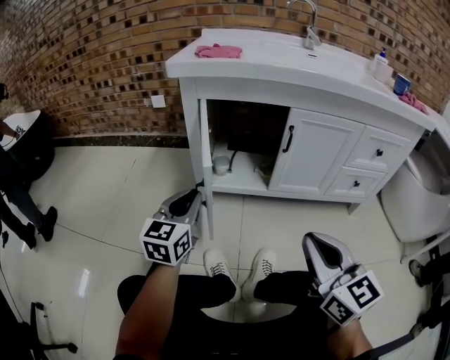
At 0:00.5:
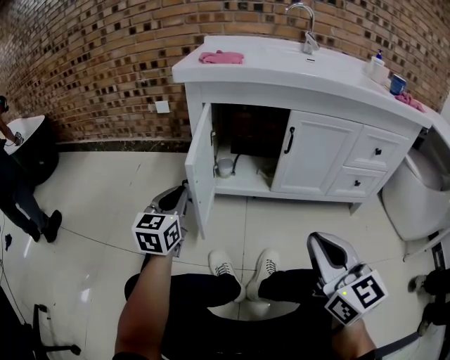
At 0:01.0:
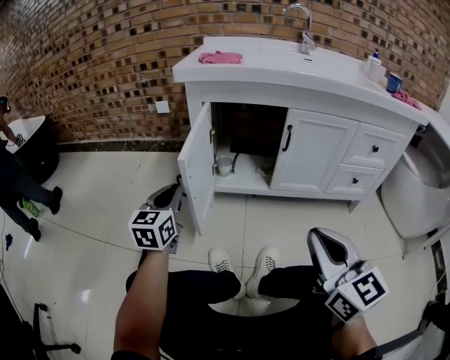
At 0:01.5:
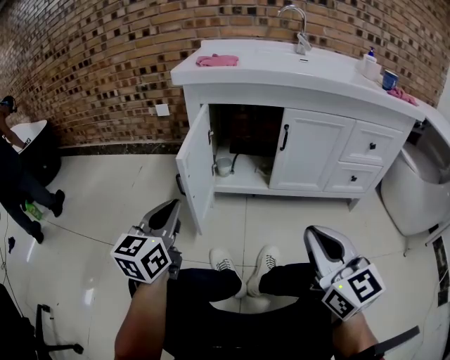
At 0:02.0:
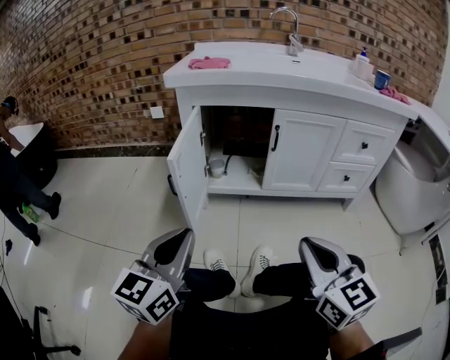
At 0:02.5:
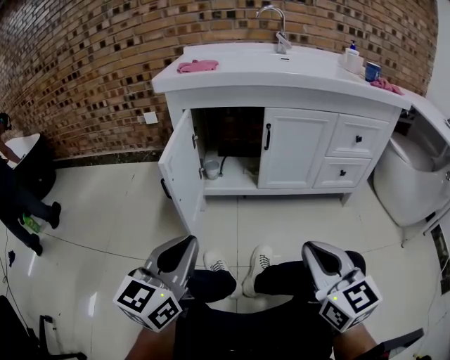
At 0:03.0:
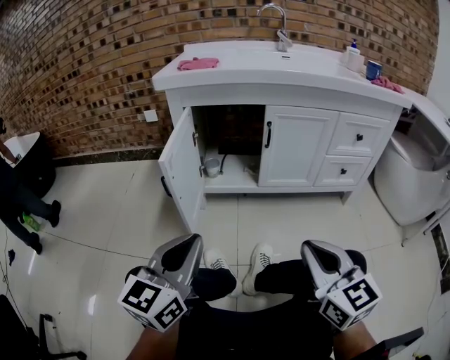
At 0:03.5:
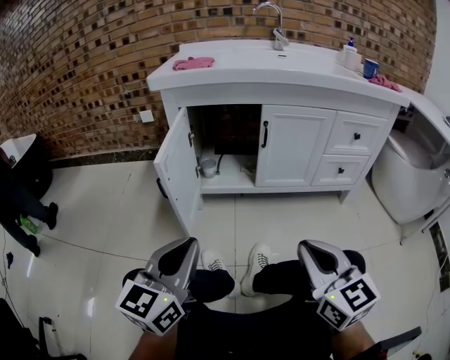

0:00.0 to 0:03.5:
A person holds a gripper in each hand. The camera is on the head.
0:00.0 to 0:02.0: The left gripper shifts about 20 cm backward. Meanwhile the right gripper goes about 5 cm backward.
0:02.0 to 0:03.5: The grippers stay close to where they were, moving slightly.

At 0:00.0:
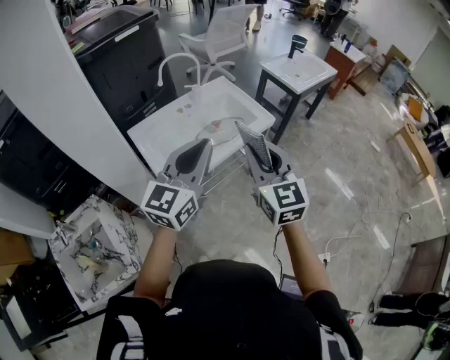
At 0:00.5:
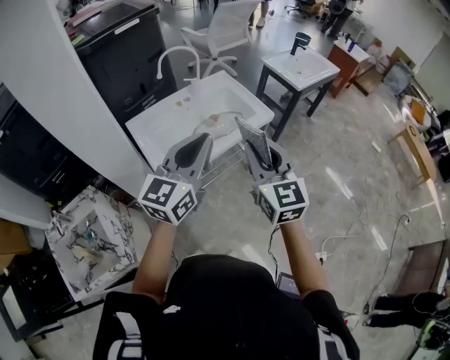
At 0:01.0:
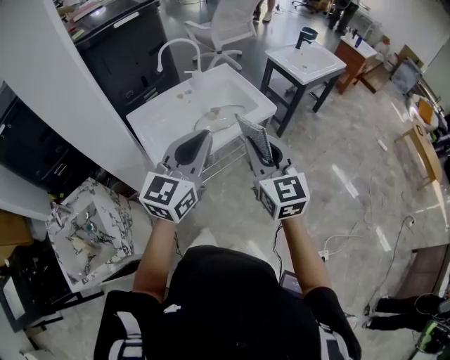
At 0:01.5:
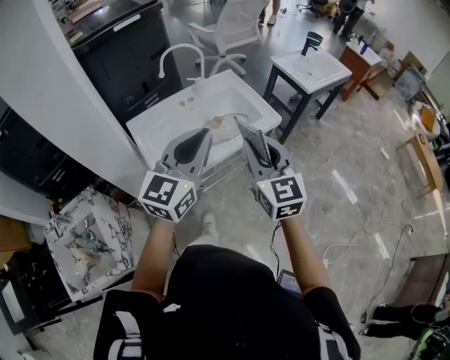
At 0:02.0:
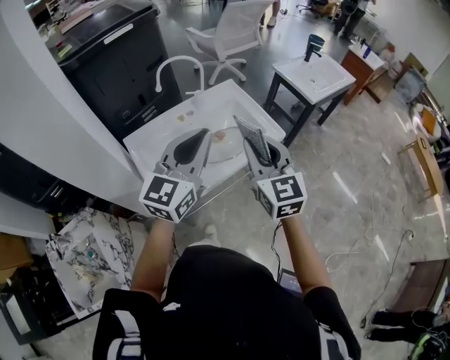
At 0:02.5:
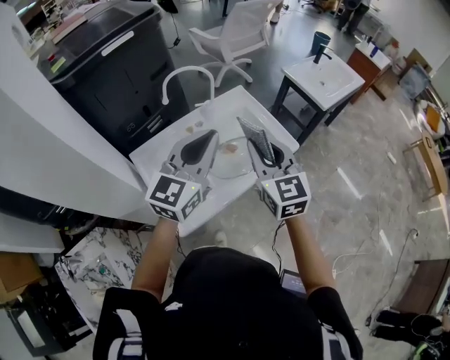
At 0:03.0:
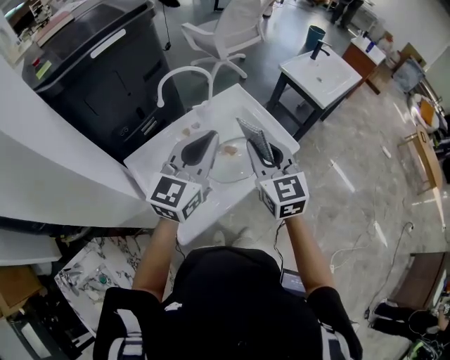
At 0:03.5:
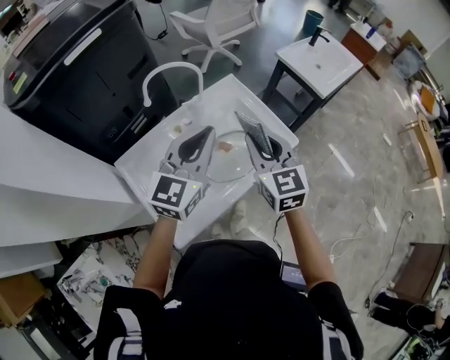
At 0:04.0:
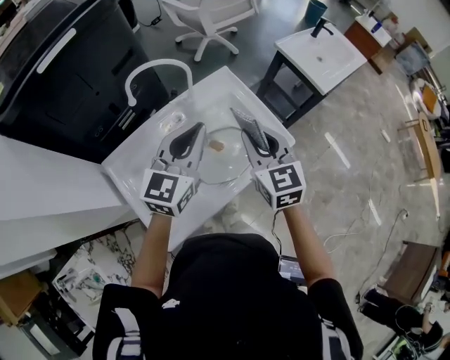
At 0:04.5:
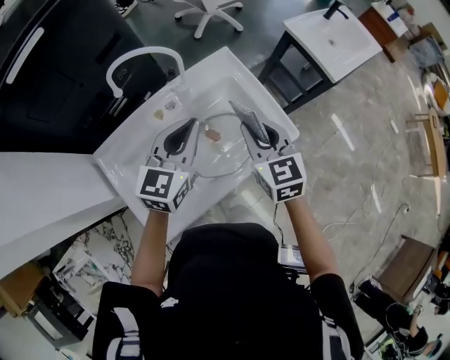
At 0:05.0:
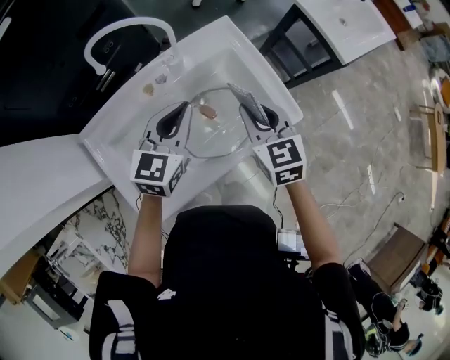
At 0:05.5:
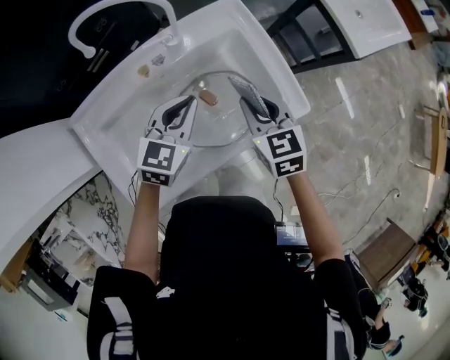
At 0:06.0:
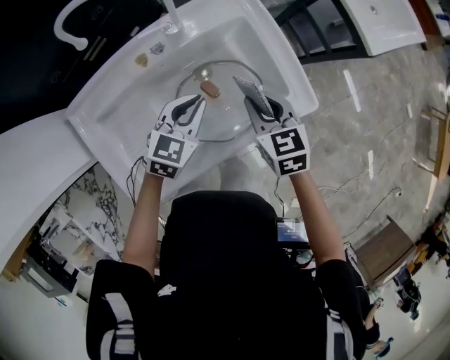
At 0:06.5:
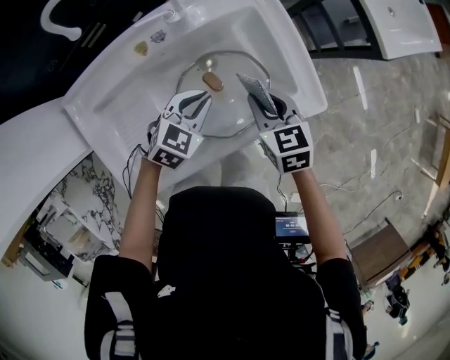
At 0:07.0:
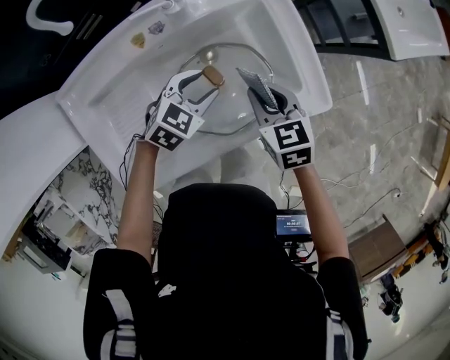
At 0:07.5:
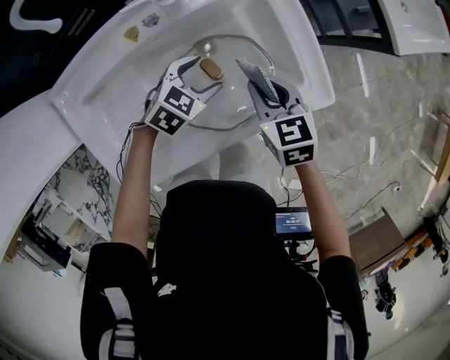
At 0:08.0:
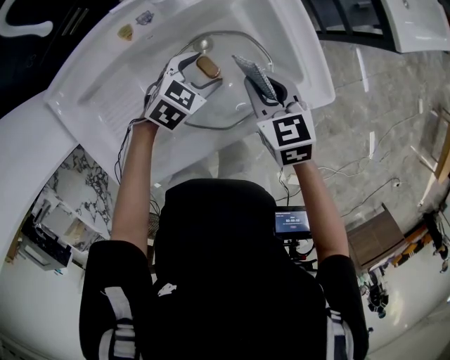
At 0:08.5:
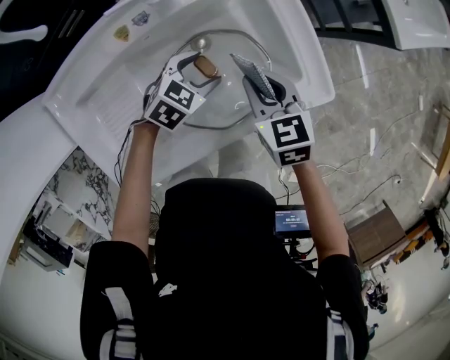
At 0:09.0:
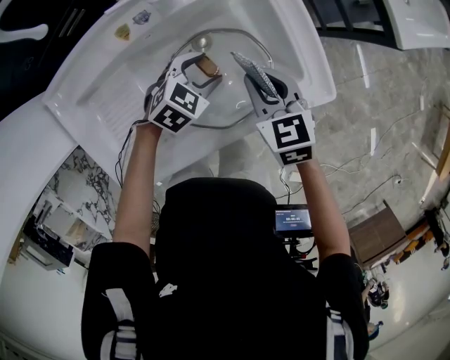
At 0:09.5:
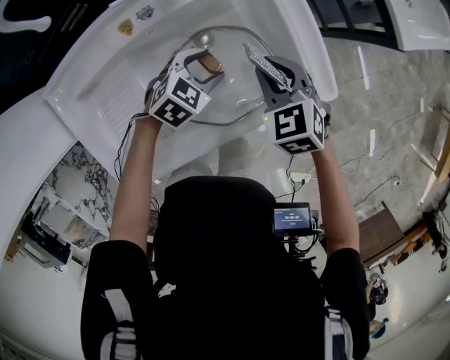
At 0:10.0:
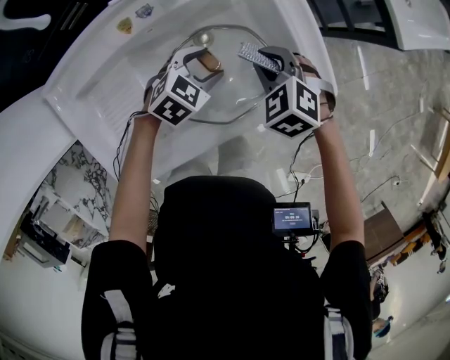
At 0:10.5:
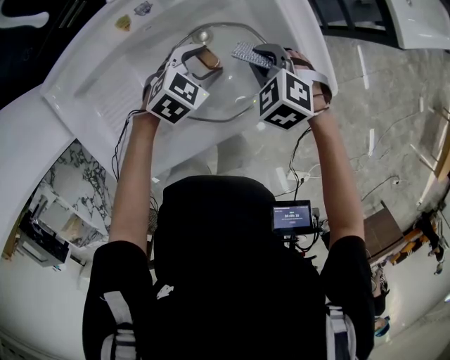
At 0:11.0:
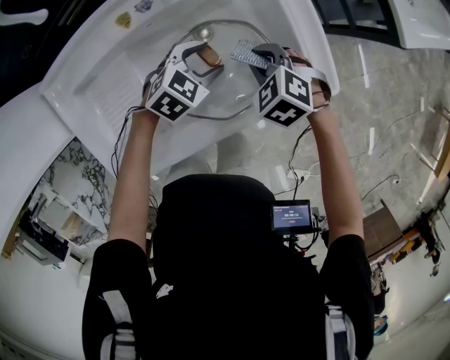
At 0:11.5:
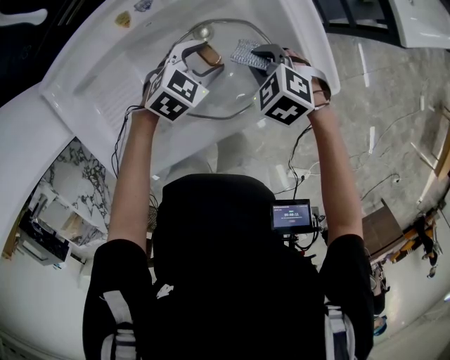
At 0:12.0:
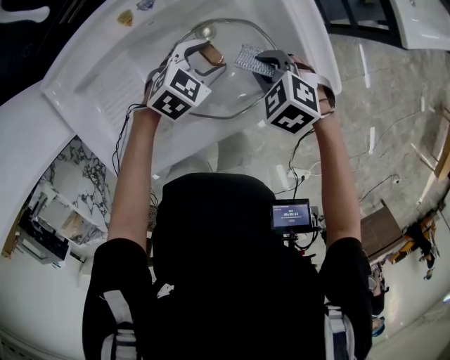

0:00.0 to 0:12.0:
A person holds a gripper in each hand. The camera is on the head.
0:00.0 to 0:02.0: The grippers both shift forward by roughly 15 cm.
0:02.0 to 0:04.0: The two grippers go about 25 cm forward and downward.
0:04.0 to 0:06.0: Both grippers travel together downward, roughly 25 cm. The right gripper swivels approximately 30 degrees, while the left gripper tips its fingers downward by about 30 degrees.
0:06.0 to 0:08.0: The right gripper moves downward, some 5 cm; the left gripper goes roughly 10 cm downward, changes its angle by roughly 20 degrees, and opens its fingers.
0:08.0 to 0:10.0: The right gripper changes its angle by roughly 40 degrees.
0:10.0 to 0:12.0: The grippers stay close to where they were, moving slightly.

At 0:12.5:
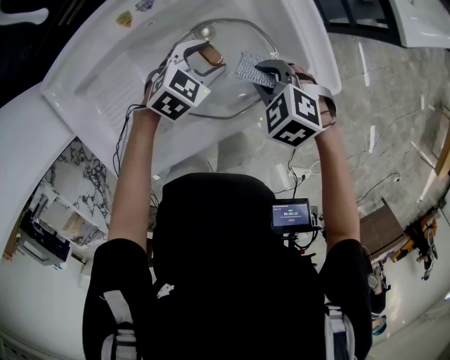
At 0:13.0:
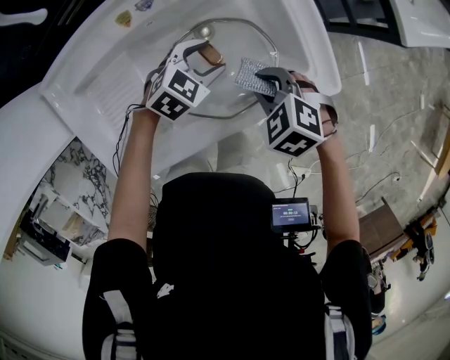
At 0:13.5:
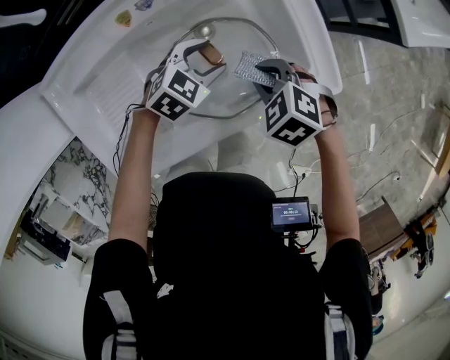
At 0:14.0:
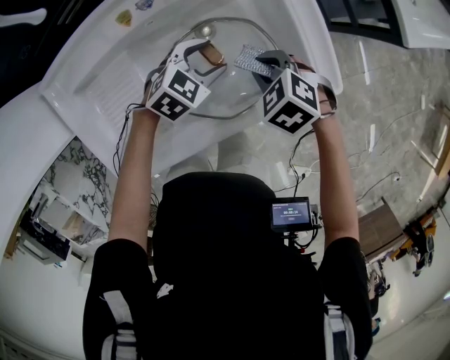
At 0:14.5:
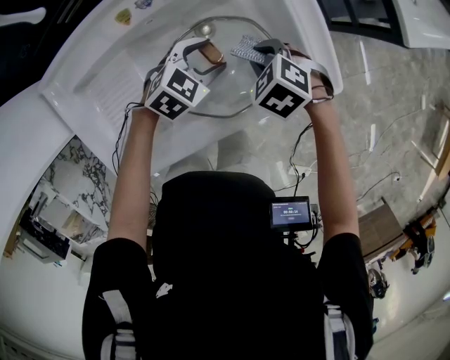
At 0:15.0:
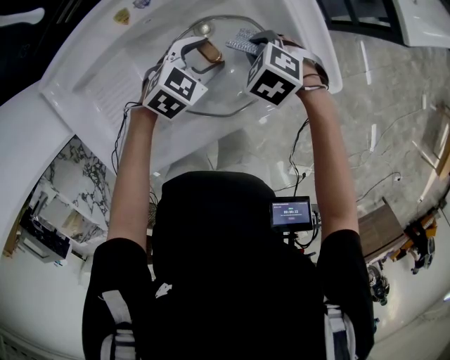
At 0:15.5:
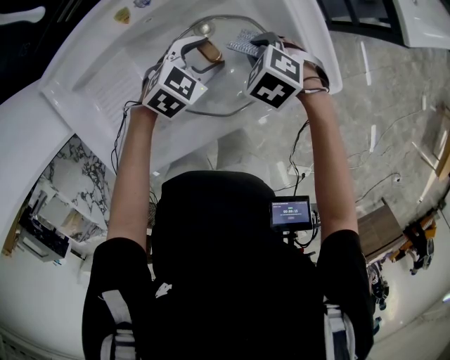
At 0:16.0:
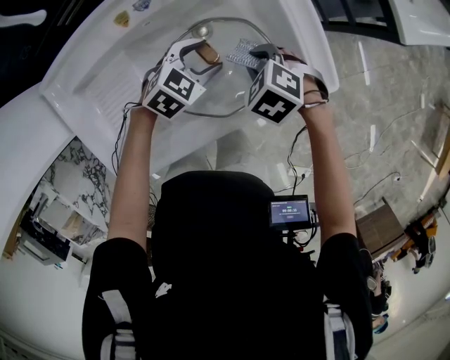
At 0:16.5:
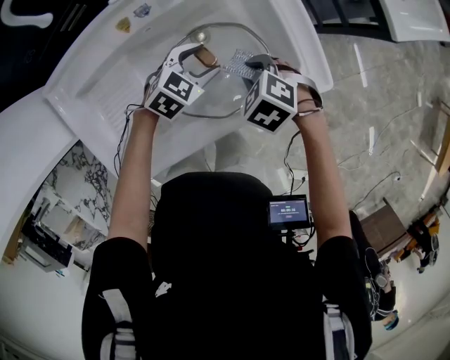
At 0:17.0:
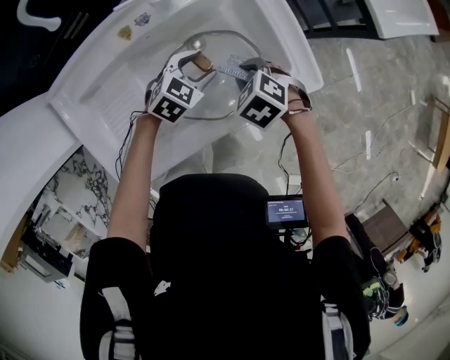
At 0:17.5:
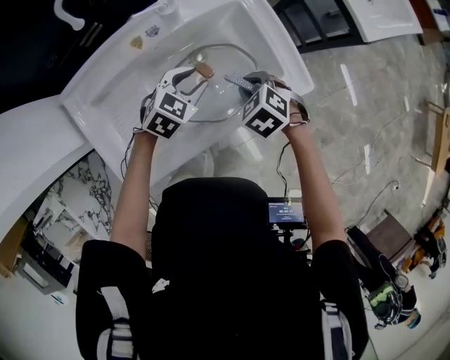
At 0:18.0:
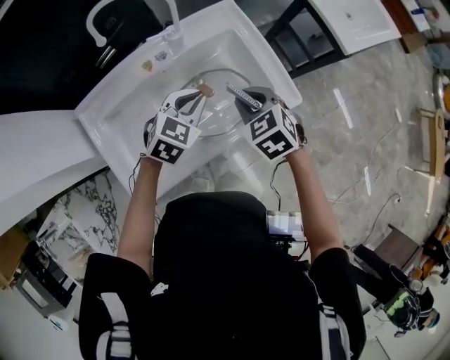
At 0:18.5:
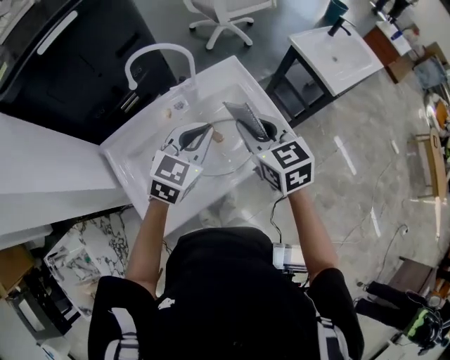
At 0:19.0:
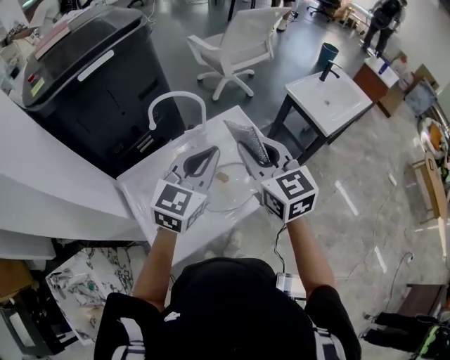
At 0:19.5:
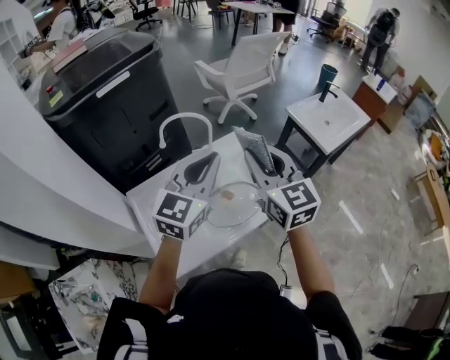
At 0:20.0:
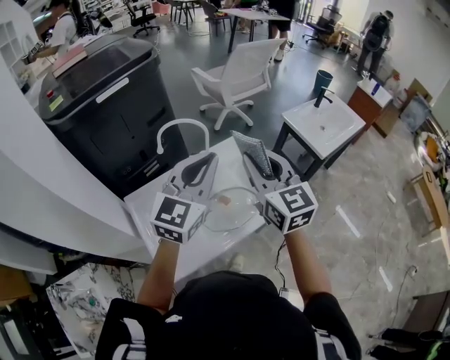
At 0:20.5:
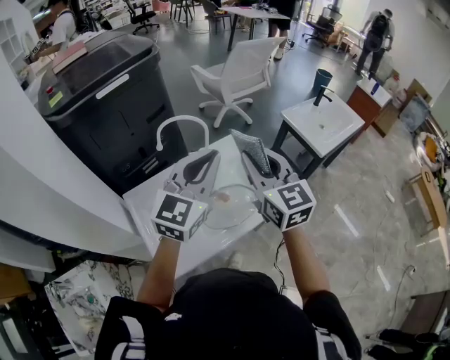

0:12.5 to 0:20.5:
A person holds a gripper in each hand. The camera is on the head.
0:12.5 to 0:14.5: The grippers stay close to where they were, moving slightly.
0:14.5 to 0:16.5: The grippers move only a little.
0:16.5 to 0:18.5: The grippers both shift upward by about 30 cm. The left gripper turns by approximately 30 degrees, and closes its fingers; the right gripper tips its fingers upward by approximately 50 degrees.
0:18.5 to 0:20.5: Both grippers travel together upward, roughly 20 cm. The right gripper swivels approximately 20 degrees; the left gripper swivels some 30 degrees.

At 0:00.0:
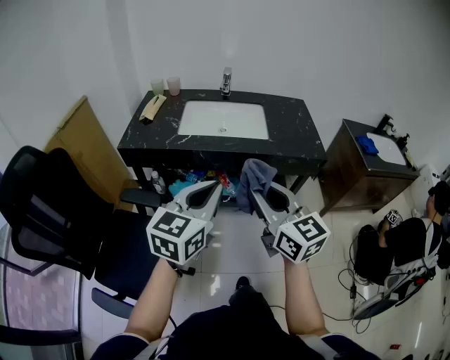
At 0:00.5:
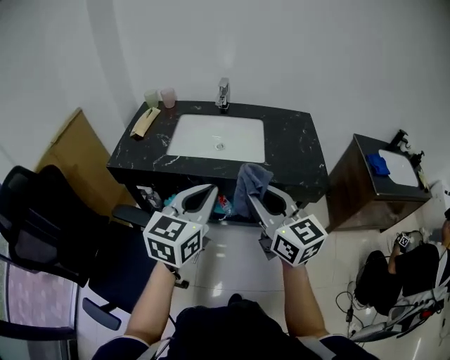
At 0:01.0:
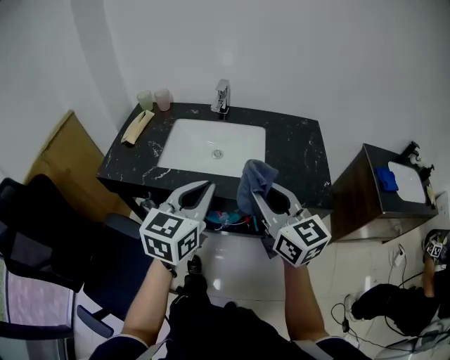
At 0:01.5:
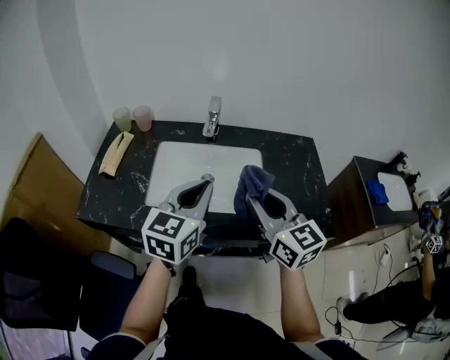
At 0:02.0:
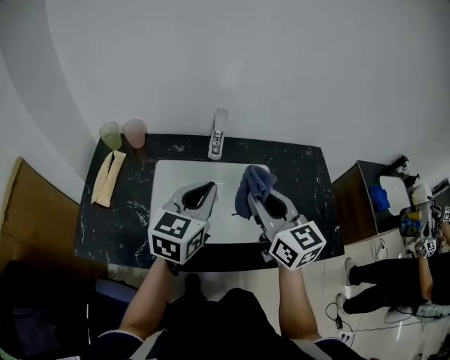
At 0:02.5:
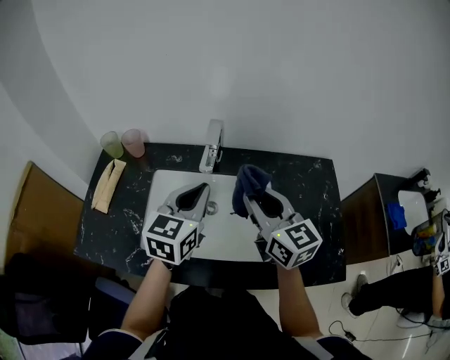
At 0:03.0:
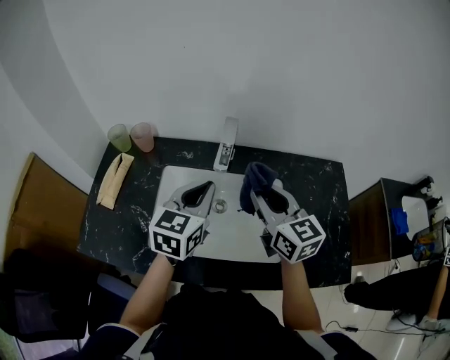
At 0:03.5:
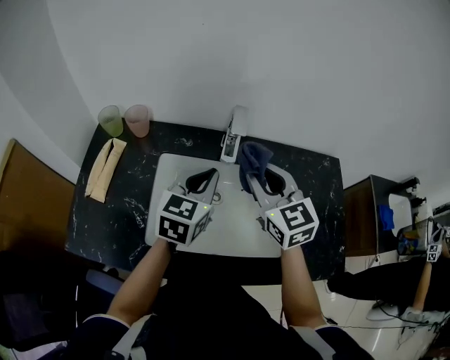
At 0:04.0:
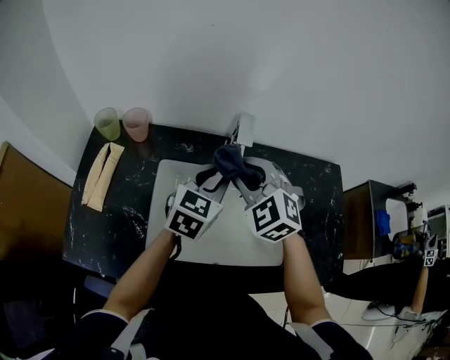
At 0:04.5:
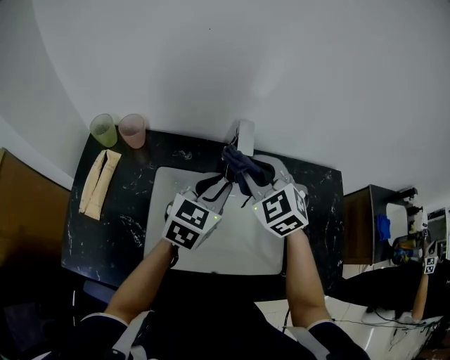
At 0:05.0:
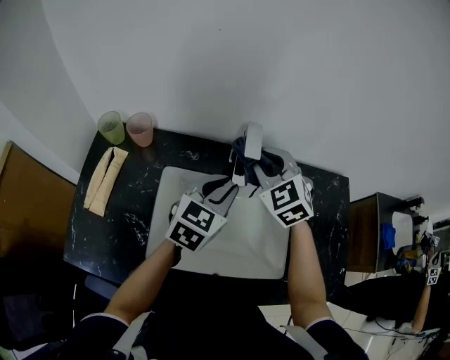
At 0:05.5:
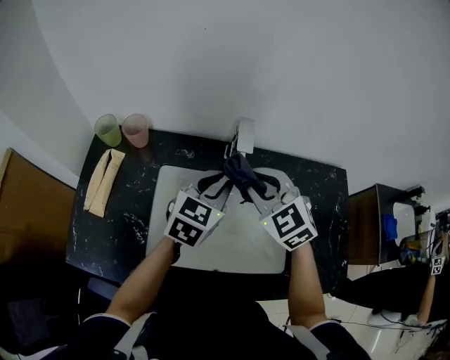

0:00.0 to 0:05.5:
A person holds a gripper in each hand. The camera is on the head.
0:00.0 to 0:02.0: The pair of grippers is taken forward, roughly 50 cm.
0:02.0 to 0:03.5: The left gripper heads forward and downward, covering some 10 cm; the right gripper is displaced forward by roughly 10 cm.
0:03.5 to 0:05.5: The left gripper changes place by roughly 5 cm. Meanwhile the right gripper moves some 10 cm forward and comes back, and changes its angle by about 30 degrees.
